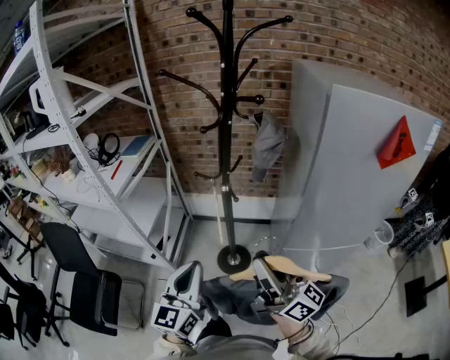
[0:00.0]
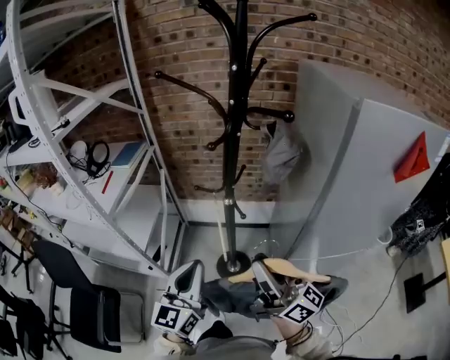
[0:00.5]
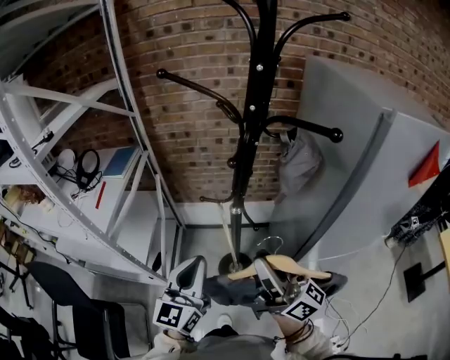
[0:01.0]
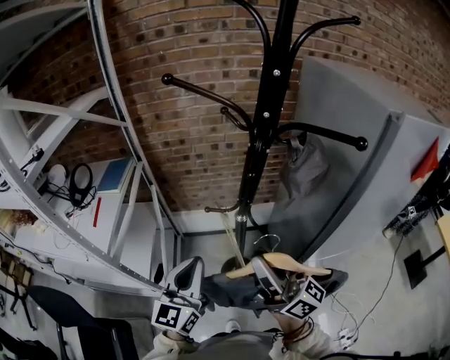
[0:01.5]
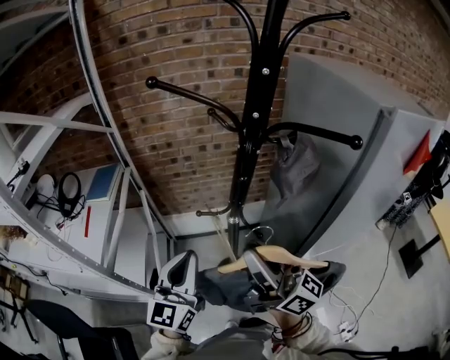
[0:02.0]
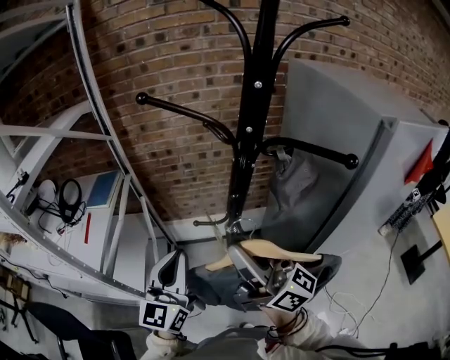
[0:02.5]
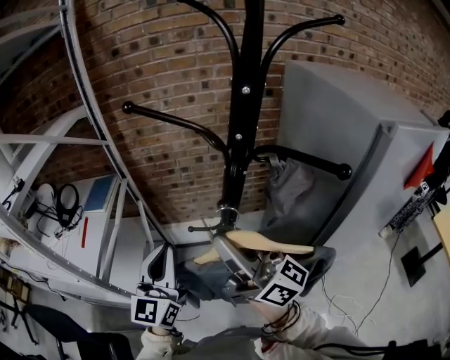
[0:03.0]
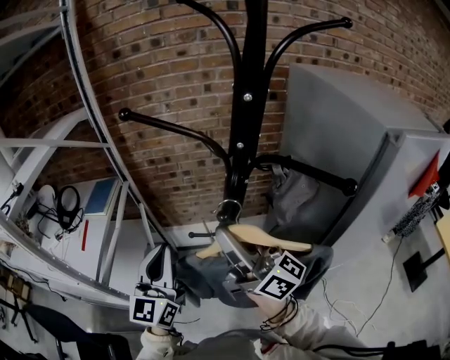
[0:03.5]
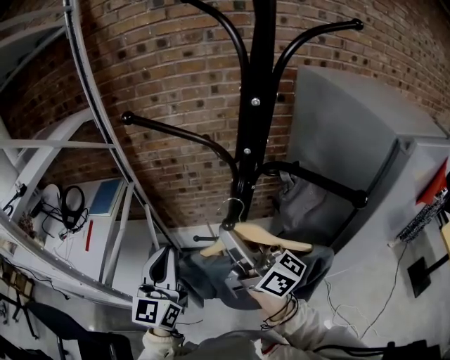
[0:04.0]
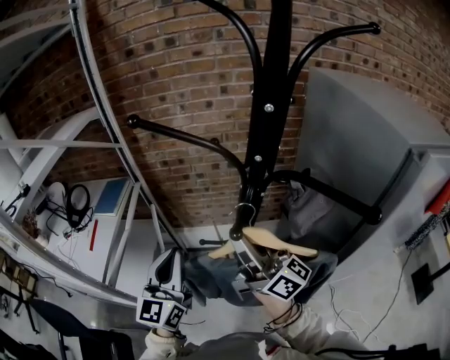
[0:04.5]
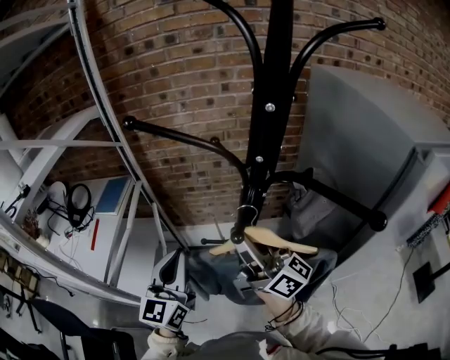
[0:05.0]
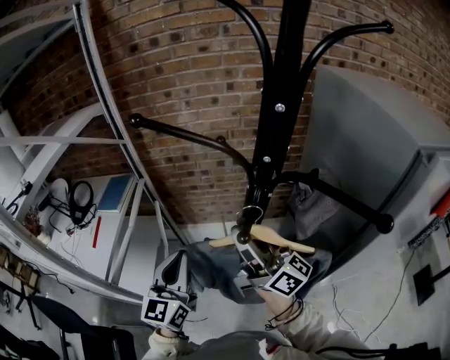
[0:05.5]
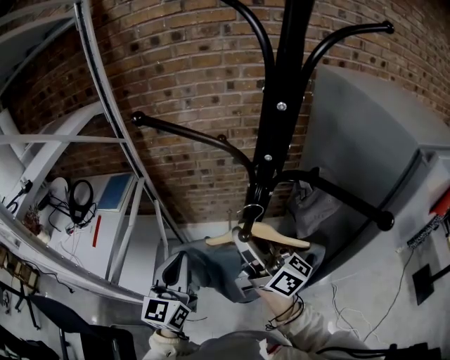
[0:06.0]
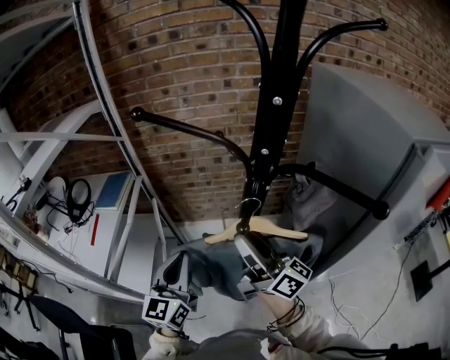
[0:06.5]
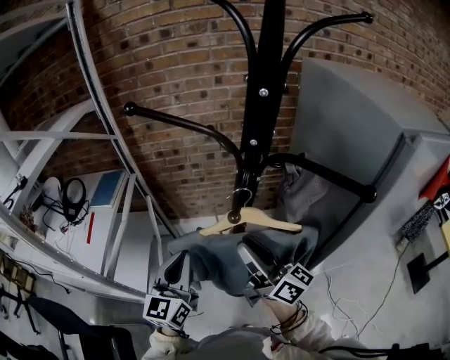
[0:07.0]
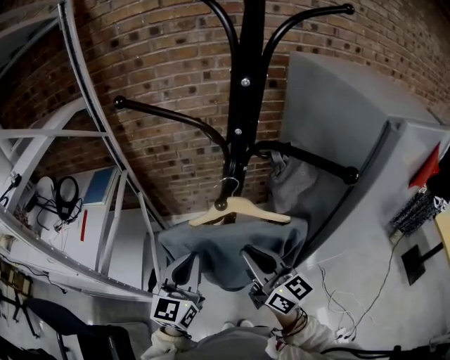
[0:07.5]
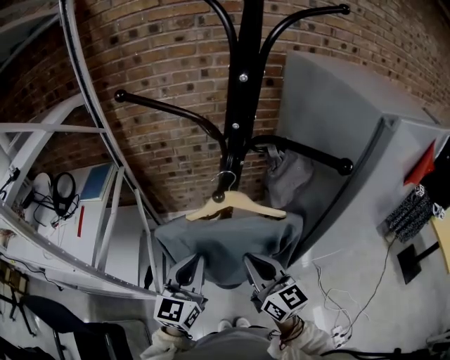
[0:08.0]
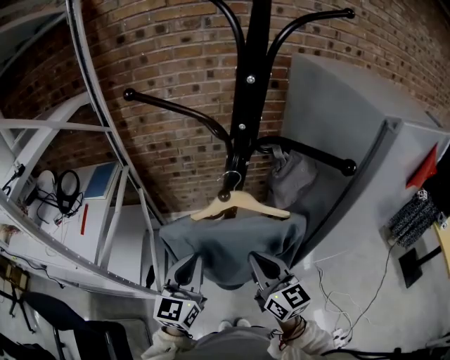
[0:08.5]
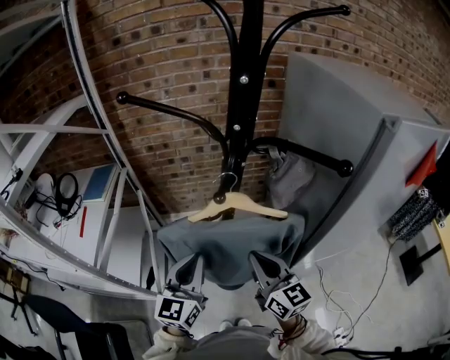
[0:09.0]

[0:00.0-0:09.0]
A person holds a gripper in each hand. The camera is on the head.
0:00.0 to 0:02.0: The left gripper goes roughly 30 cm forward; the right gripper goes approximately 25 cm forward and to the left.
0:02.0 to 0:04.5: Both grippers move forward, approximately 10 cm.
0:04.5 to 0:07.0: The right gripper moves downward, some 5 cm, while the left gripper shifts by some 5 cm.
0:07.0 to 0:09.0: The right gripper travels backward and downward by roughly 10 cm, swivels some 30 degrees, and closes up; the left gripper goes approximately 5 cm to the right.

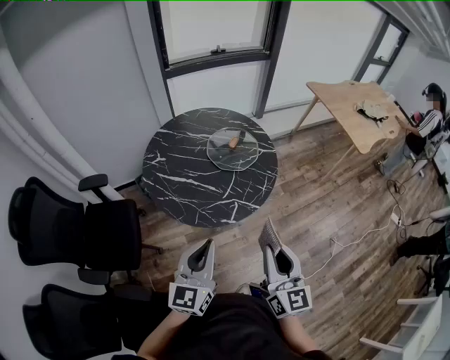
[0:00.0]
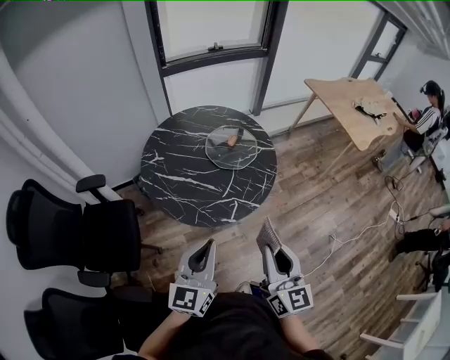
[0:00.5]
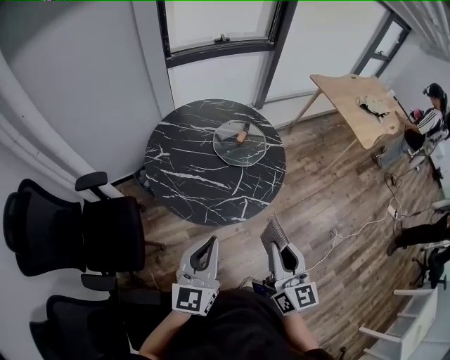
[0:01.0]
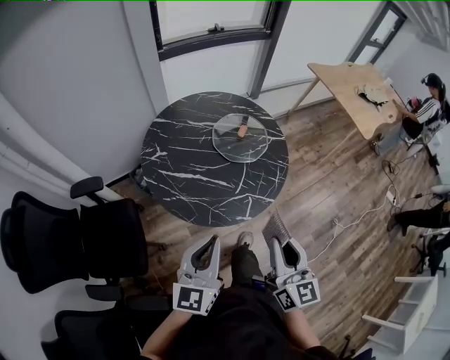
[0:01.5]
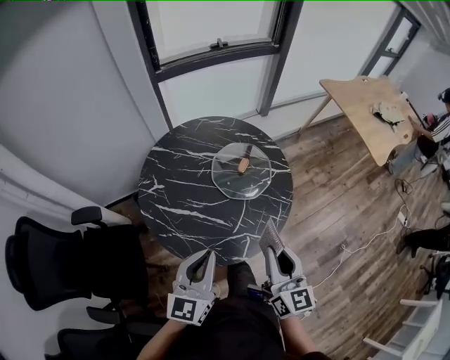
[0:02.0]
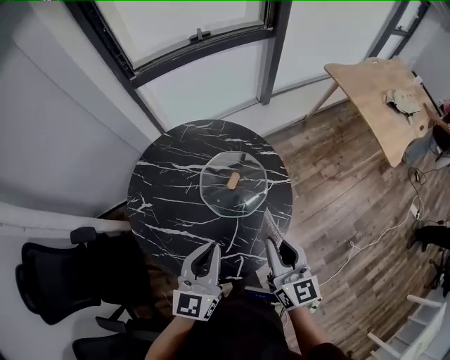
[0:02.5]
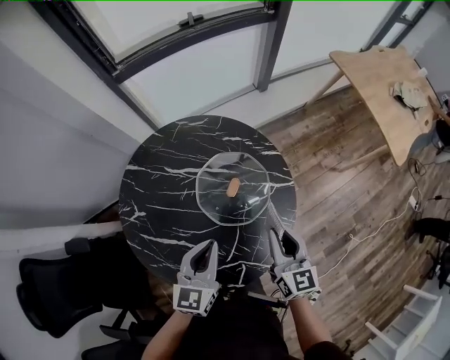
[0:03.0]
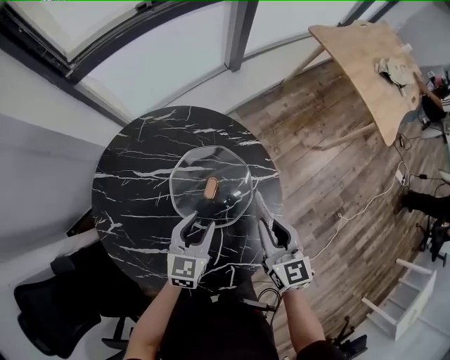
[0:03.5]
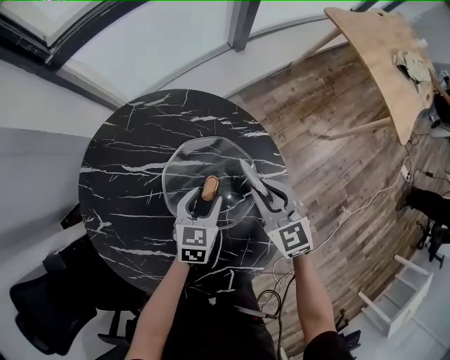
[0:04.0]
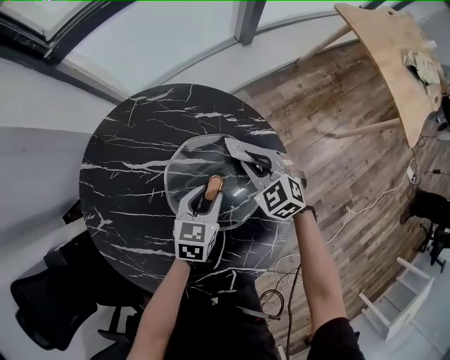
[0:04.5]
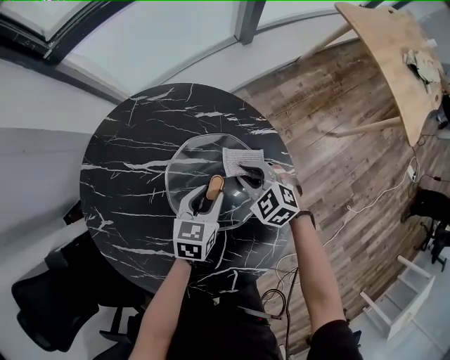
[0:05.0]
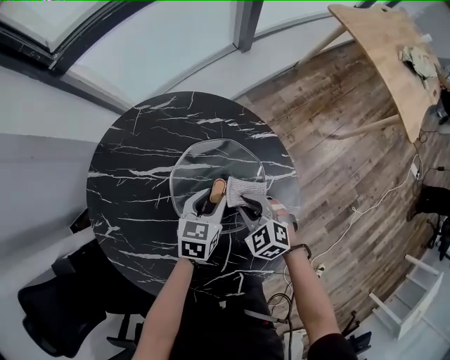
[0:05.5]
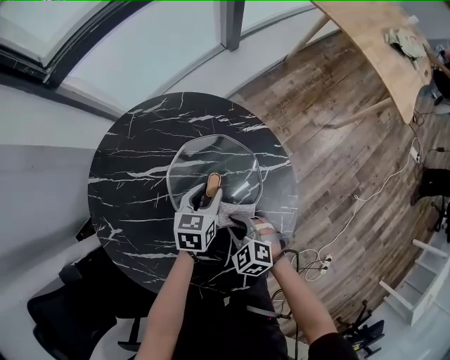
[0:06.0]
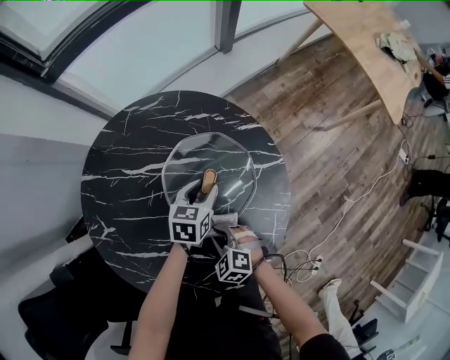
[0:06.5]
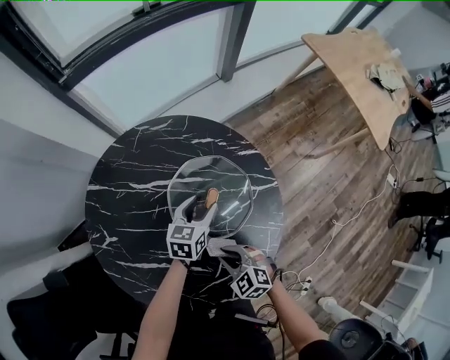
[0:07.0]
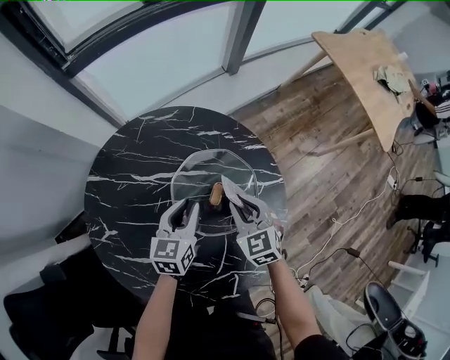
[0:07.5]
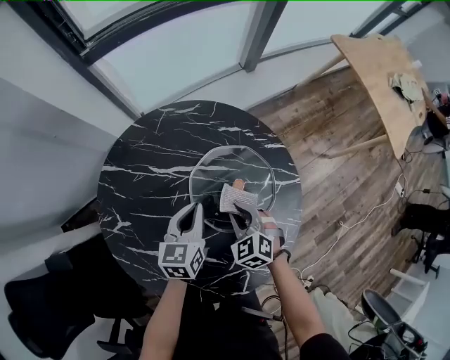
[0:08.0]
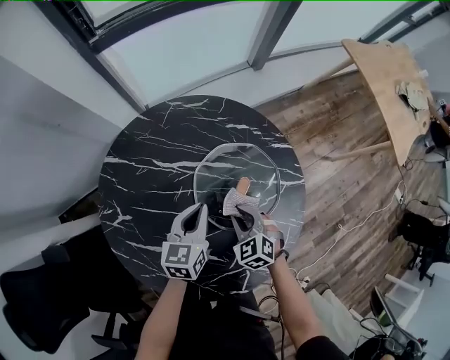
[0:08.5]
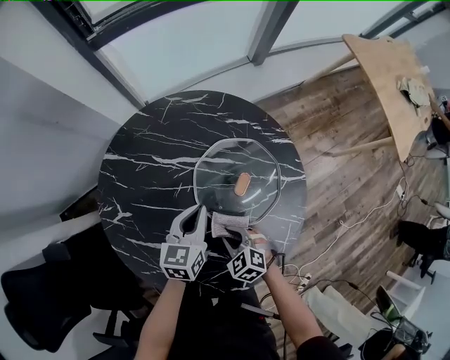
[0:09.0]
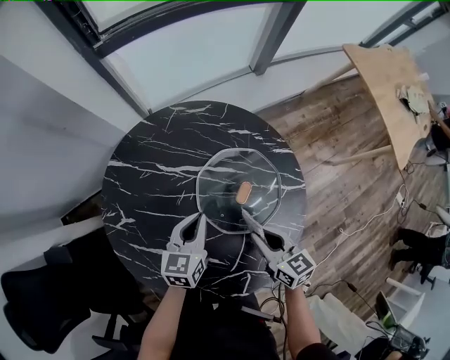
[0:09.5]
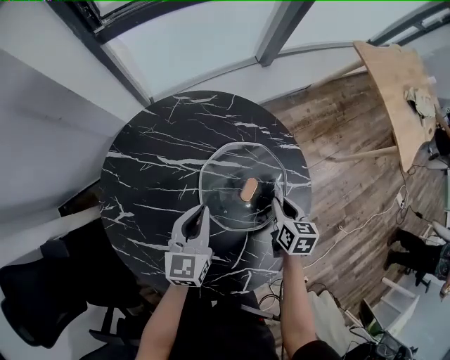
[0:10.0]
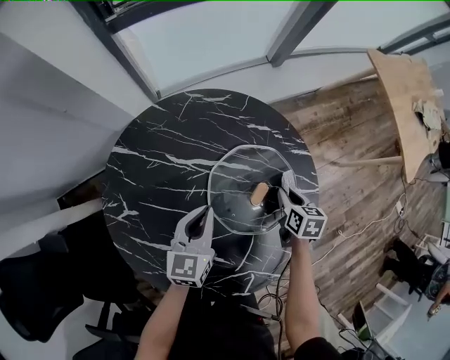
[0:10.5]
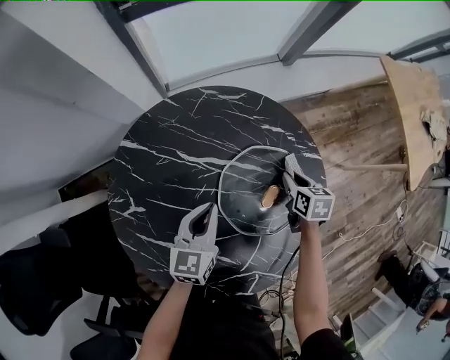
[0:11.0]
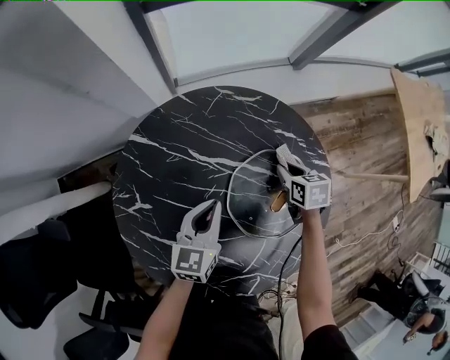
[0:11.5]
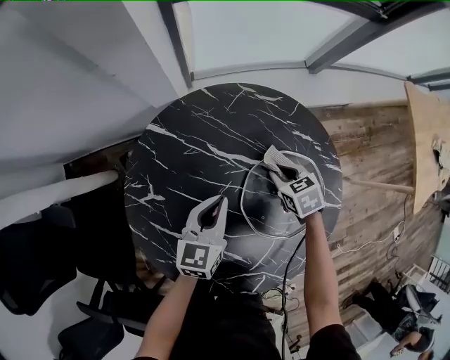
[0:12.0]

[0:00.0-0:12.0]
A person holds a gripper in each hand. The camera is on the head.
0:00.0 to 0:02.0: The two grippers go approximately 20 cm forward.
0:02.0 to 0:04.0: The grippers both shift forward and downward by some 50 cm. The right gripper rotates roughly 40 degrees. The left gripper tilts its fingers some 40 degrees downward, and opens its fingers.
0:04.0 to 0:06.0: The right gripper travels backward, downward and to the left by some 20 cm, and turns by some 30 degrees.
0:06.0 to 0:08.0: The right gripper moves forward and backward over about 15 cm, changing direction 2 times. Meanwhile the left gripper goes some 15 cm to the left and upward, changes its angle by roughly 20 degrees, and closes its fingers.
0:08.0 to 0:10.0: The right gripper shifts some 15 cm to the right, and rolls clockwise, seen from behind, by some 60 degrees.
0:10.0 to 0:12.0: The right gripper shifts by roughly 20 cm, and rolls counterclockwise, seen from behind, by roughly 40 degrees. Meanwhile the left gripper shifts by approximately 10 cm.

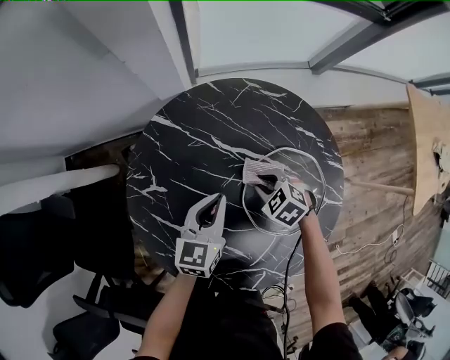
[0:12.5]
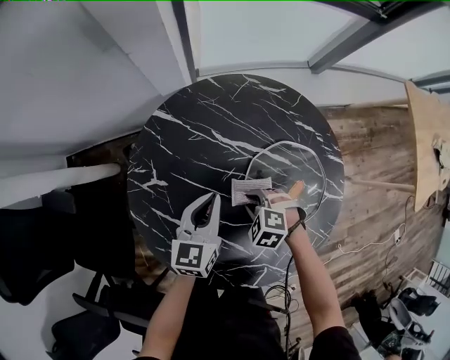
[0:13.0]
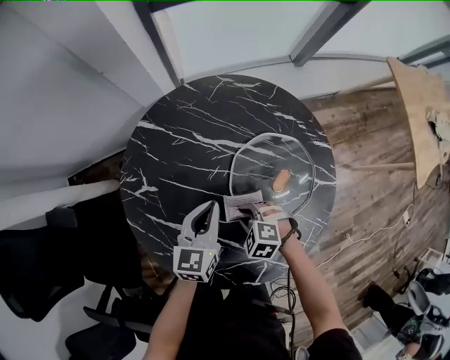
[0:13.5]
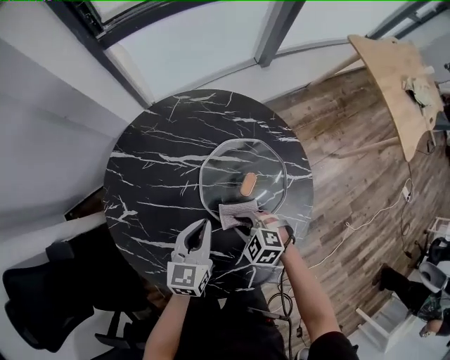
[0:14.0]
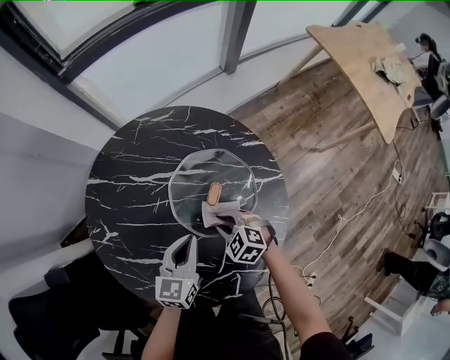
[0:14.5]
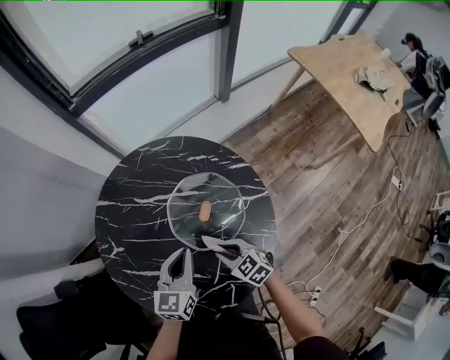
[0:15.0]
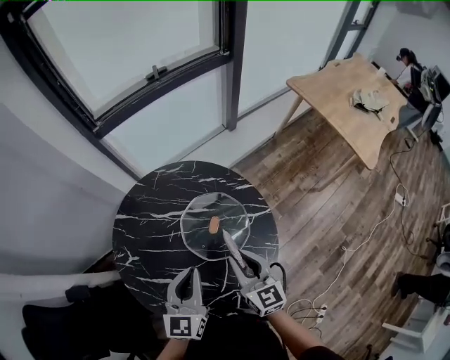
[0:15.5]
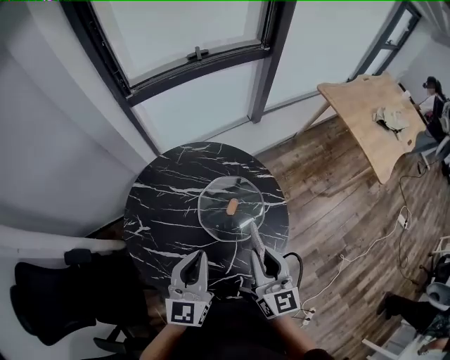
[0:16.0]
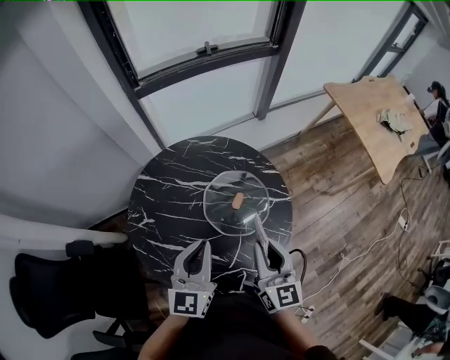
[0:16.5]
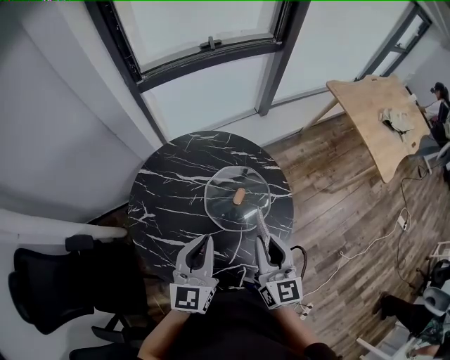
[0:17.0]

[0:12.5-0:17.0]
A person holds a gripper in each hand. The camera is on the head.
0:12.5 to 0:14.5: The left gripper heads backward and to the right, covering roughly 15 cm. Meanwhile the right gripper travels backward by roughly 15 cm.
0:14.5 to 0:17.0: The grippers both shift upward by about 30 cm. The right gripper tilts its fingers some 50 degrees upward; the left gripper changes its angle by roughly 20 degrees.

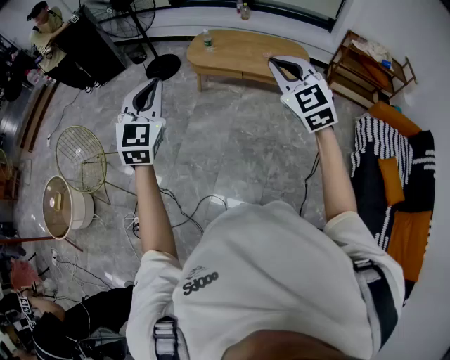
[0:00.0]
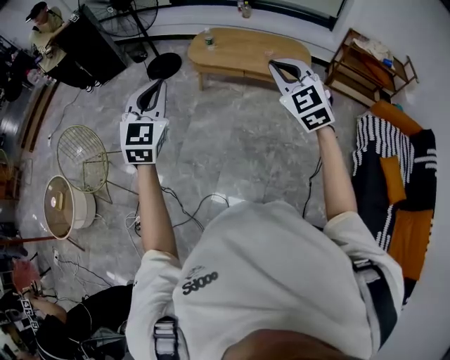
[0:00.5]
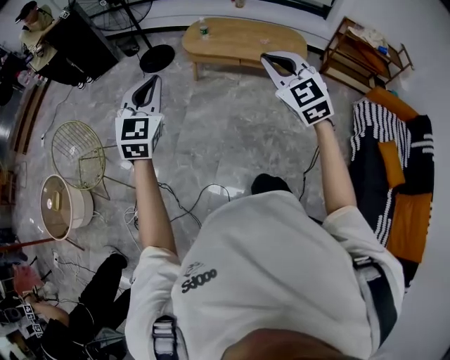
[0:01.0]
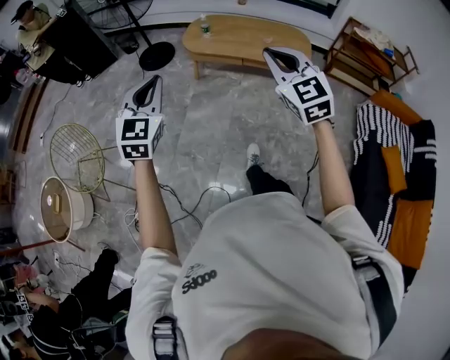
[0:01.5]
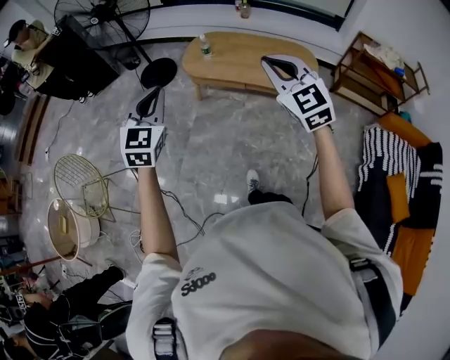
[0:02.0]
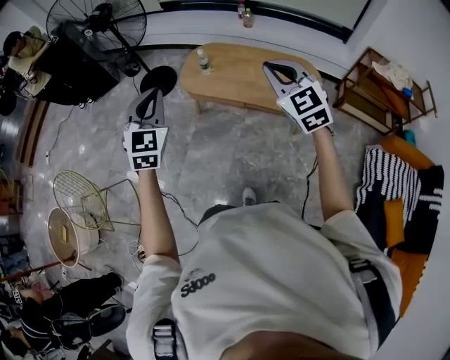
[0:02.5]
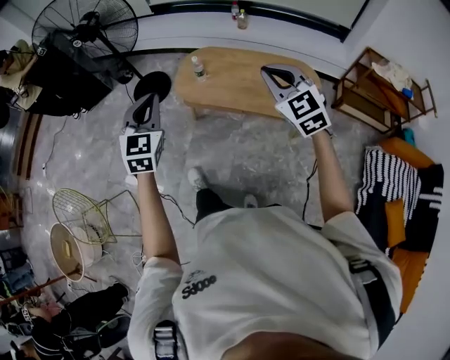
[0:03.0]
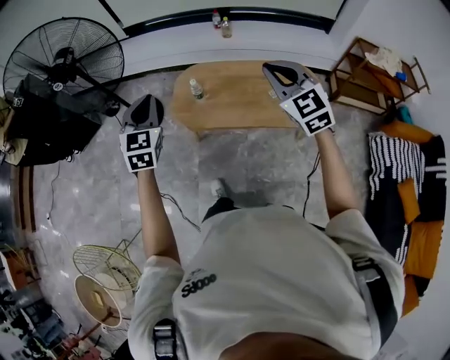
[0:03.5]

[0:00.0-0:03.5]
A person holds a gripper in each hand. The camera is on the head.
0:00.0 to 0:02.0: The two grippers go approximately 25 cm forward.
0:02.0 to 0:03.5: Both grippers move forward, some 40 cm.
